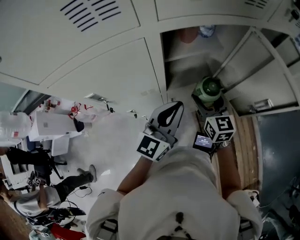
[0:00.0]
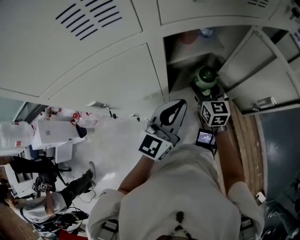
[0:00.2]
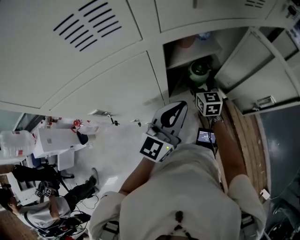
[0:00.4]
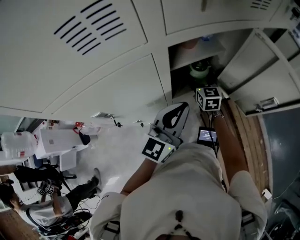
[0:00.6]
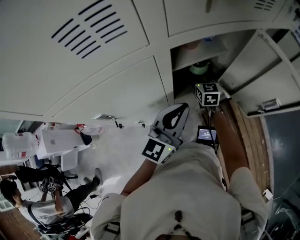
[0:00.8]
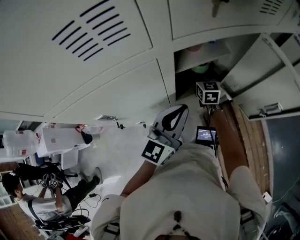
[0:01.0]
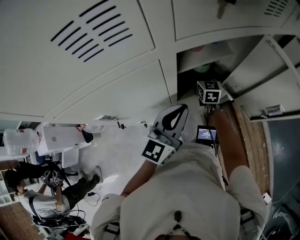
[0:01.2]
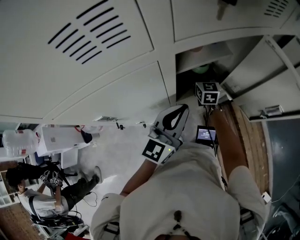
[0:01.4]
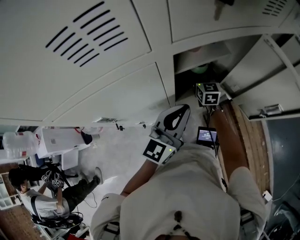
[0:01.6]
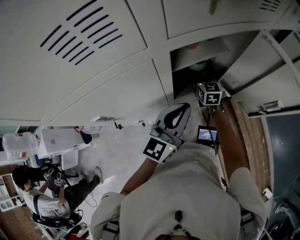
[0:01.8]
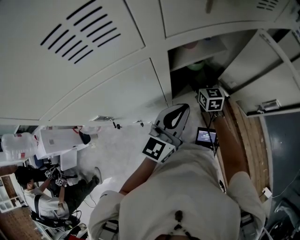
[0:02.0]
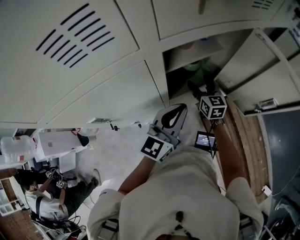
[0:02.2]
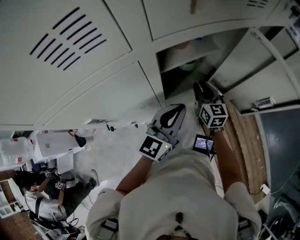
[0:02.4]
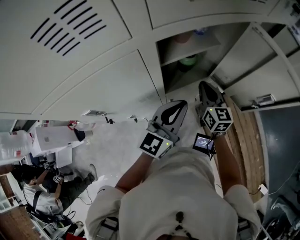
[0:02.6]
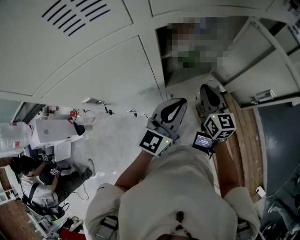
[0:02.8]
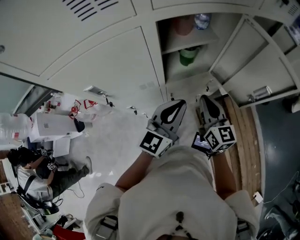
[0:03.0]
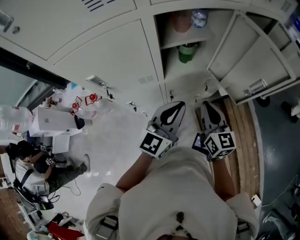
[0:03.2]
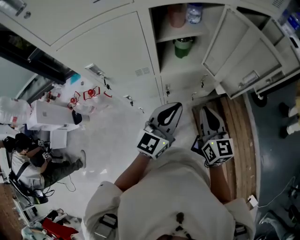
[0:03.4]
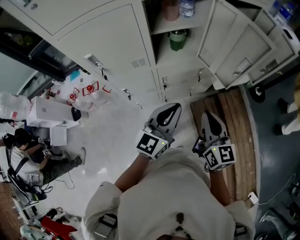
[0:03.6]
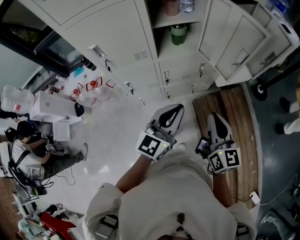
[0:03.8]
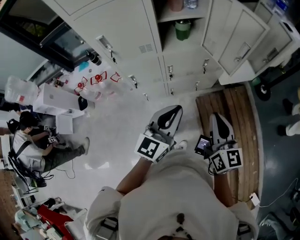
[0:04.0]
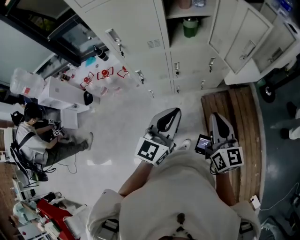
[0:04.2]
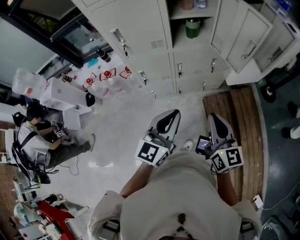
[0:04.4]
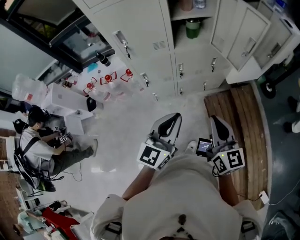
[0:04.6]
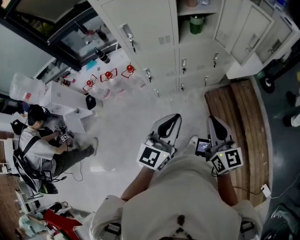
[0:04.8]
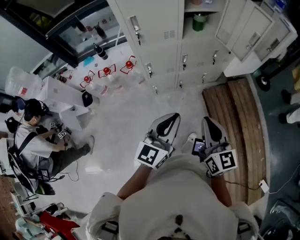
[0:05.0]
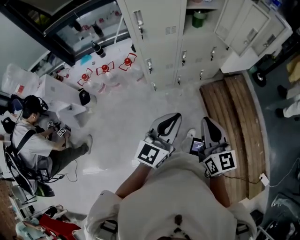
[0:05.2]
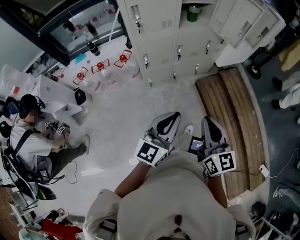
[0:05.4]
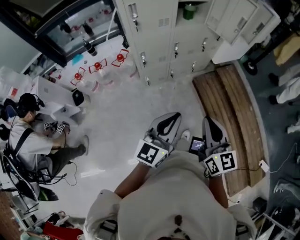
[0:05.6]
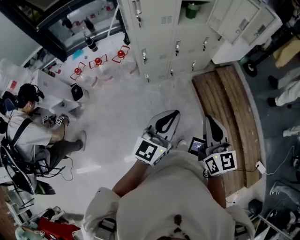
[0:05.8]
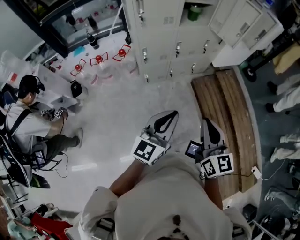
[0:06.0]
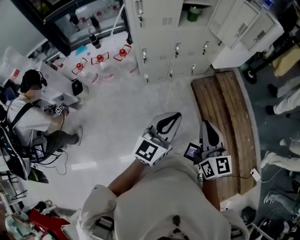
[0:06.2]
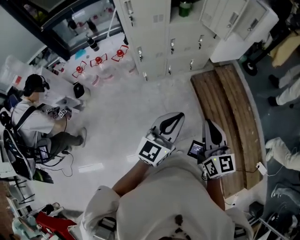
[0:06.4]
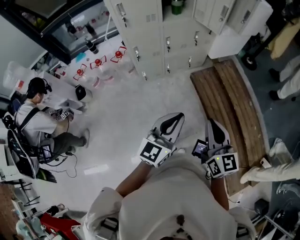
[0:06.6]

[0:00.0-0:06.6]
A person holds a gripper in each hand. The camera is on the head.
0:00.0 to 0:01.6: The right gripper is displaced forward and downward by approximately 20 cm.
0:01.6 to 0:03.2: The right gripper travels backward by about 30 cm, and closes. The left gripper heads backward and to the right, covering some 10 cm.
0:03.2 to 0:05.0: Both grippers move backward, some 35 cm.
0:05.0 to 0:06.6: The grippers both shift backward and to the right by approximately 20 cm.

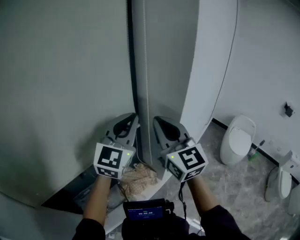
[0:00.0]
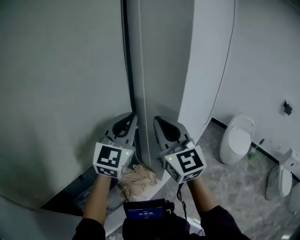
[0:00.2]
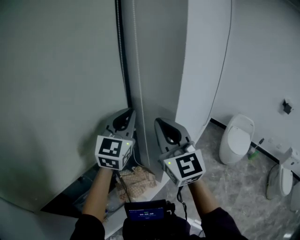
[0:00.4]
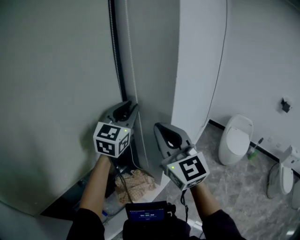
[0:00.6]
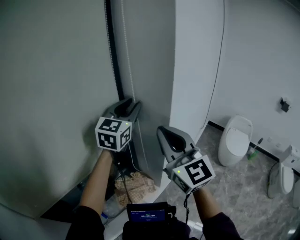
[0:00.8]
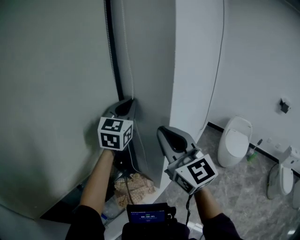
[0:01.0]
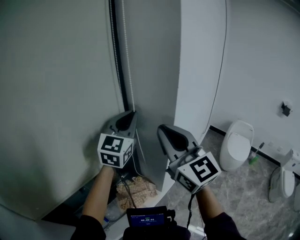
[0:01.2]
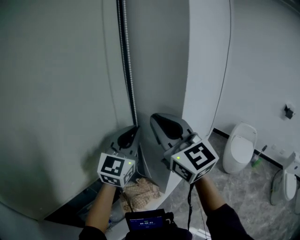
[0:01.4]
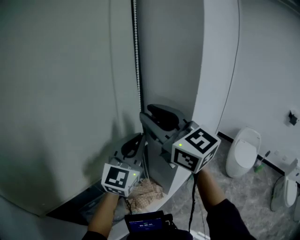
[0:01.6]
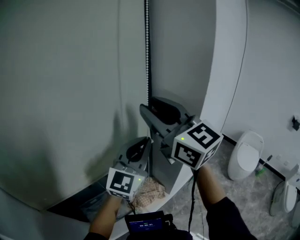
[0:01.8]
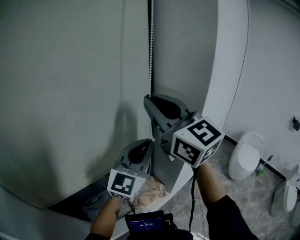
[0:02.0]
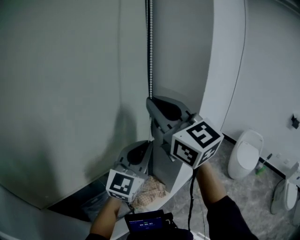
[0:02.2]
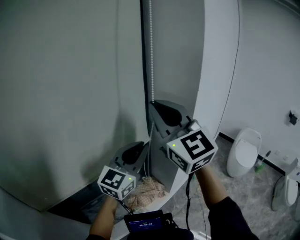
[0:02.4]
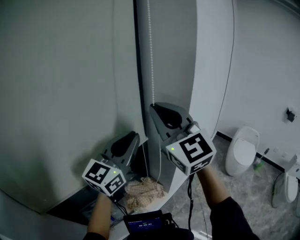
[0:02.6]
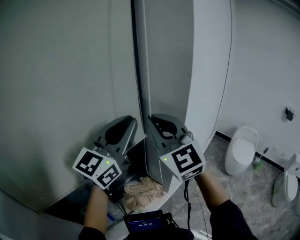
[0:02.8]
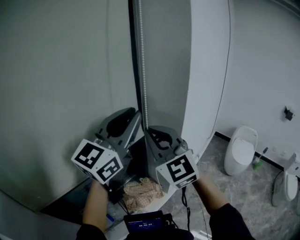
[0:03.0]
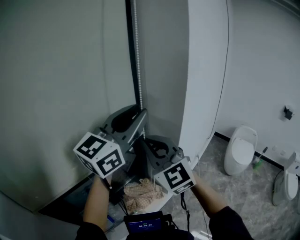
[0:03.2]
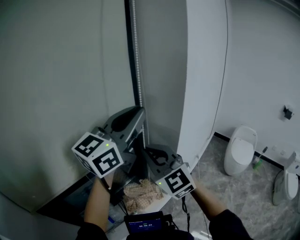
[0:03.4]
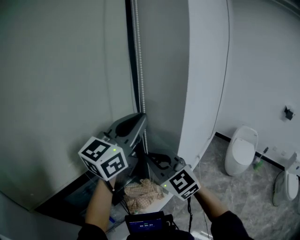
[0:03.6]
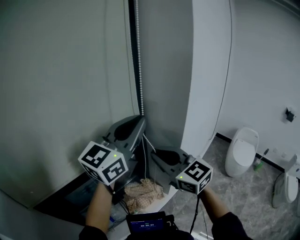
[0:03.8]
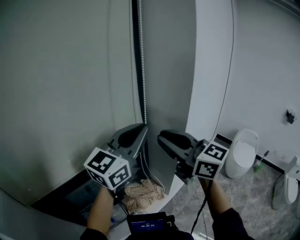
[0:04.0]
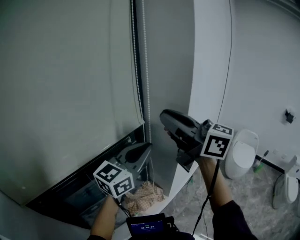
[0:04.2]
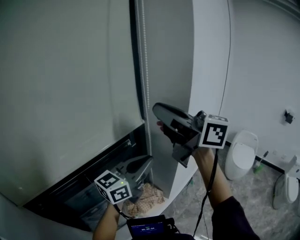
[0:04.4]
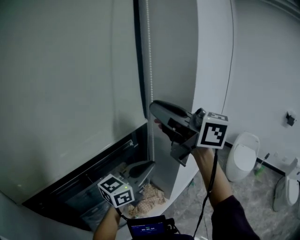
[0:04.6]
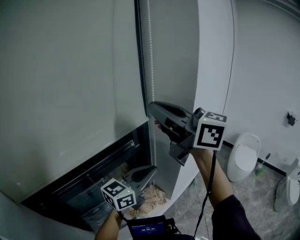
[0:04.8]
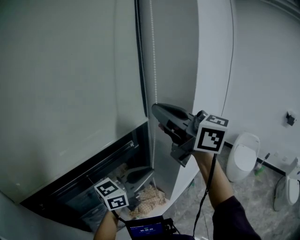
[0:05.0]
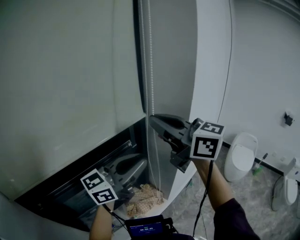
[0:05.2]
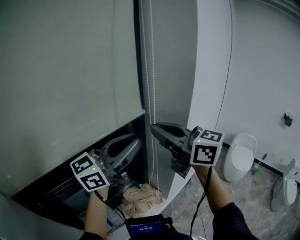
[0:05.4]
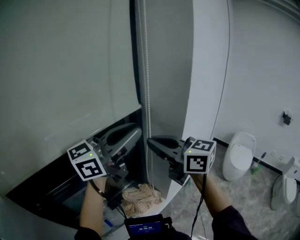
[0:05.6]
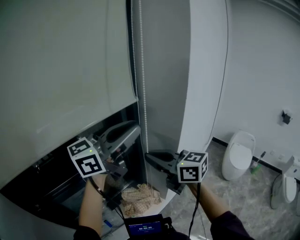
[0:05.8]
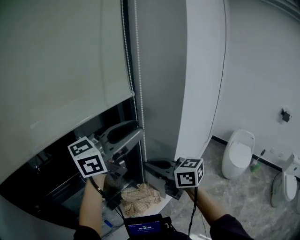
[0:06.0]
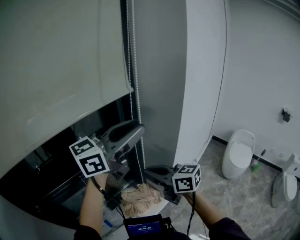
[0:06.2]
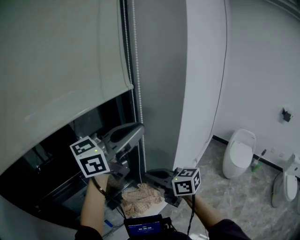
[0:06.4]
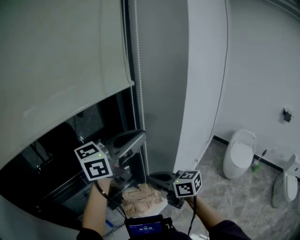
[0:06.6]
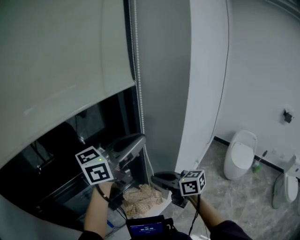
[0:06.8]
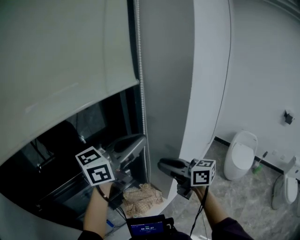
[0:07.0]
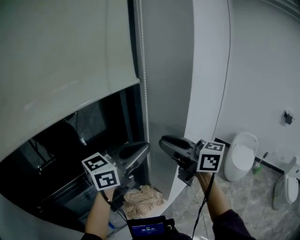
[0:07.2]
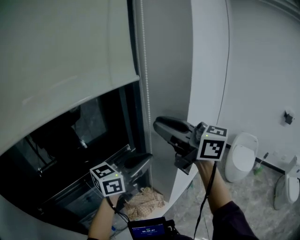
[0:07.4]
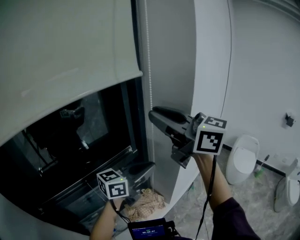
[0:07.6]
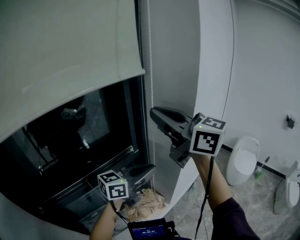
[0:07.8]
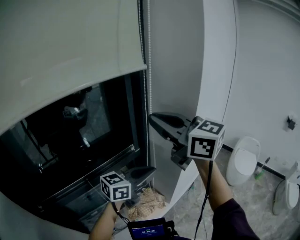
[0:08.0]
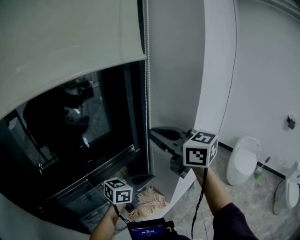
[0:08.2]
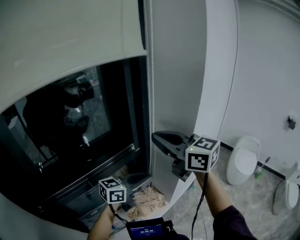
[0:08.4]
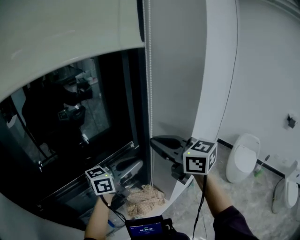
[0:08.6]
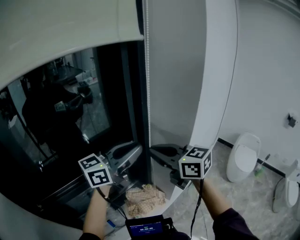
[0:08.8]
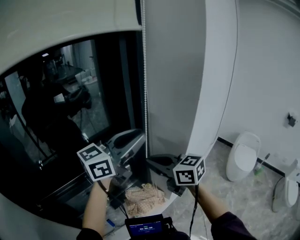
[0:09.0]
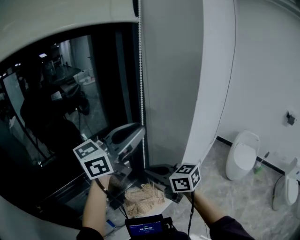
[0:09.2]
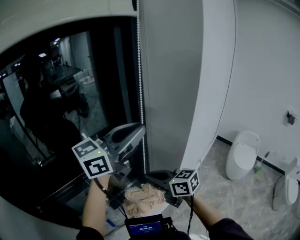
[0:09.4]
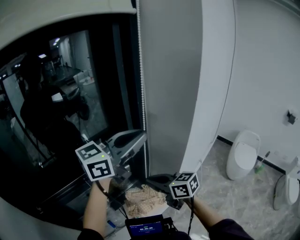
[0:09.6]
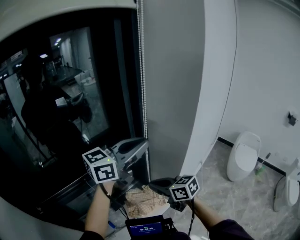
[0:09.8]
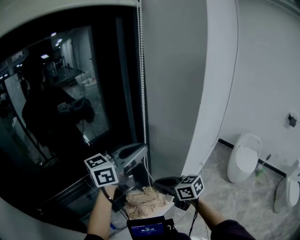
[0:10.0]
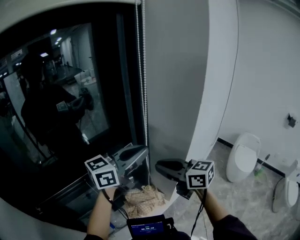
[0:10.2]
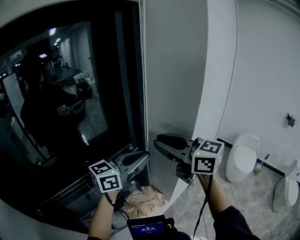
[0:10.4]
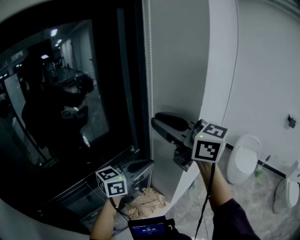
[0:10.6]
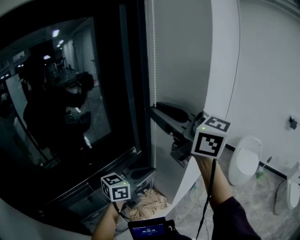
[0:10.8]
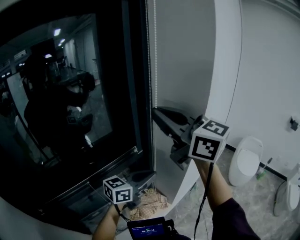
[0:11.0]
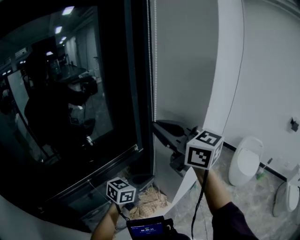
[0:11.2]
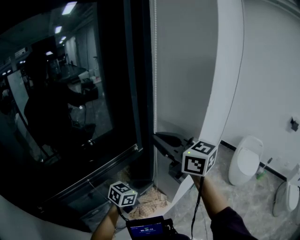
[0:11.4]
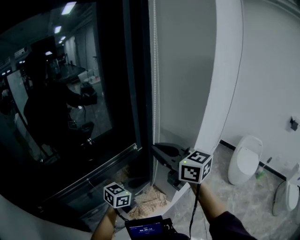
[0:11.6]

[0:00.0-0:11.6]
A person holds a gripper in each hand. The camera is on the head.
0:00.0 to 0:01.4: The left gripper moves about 10 cm forward and comes back, and opens, then closes once more. Meanwhile the right gripper heads upward, covering approximately 10 cm.
0:01.4 to 0:02.8: The left gripper shifts approximately 10 cm backward, upward and to the left; the right gripper shifts approximately 5 cm to the left, goes upward and returns, about 5 cm each way, and opens, then closes again.
0:02.8 to 0:04.4: The right gripper goes roughly 10 cm upward, and twists approximately 50 degrees clockwise, seen from behind, while the left gripper is displaced downward by approximately 10 cm, and rotates roughly 30 degrees.
0:04.4 to 0:05.8: The left gripper heads upward, covering approximately 15 cm. The right gripper is displaced downward by about 20 cm, and rotates about 20 degrees.
0:05.8 to 0:07.2: The left gripper travels downward by approximately 5 cm; the right gripper travels downward and back again, approximately 10 cm each way.
0:07.2 to 0:08.8: Both grippers move to the left, roughly 5 cm. The right gripper travels upward and back again, roughly 10 cm each way; the left gripper reaches about 20 cm downward, then returns.
0:08.8 to 0:10.2: The left gripper reaches some 10 cm upward, then returns. The right gripper is displaced downward by some 5 cm.
0:10.2 to 0:11.6: The left gripper is displaced downward by some 20 cm. The right gripper moves approximately 25 cm upward and comes back.

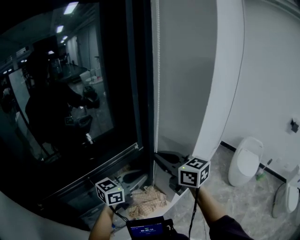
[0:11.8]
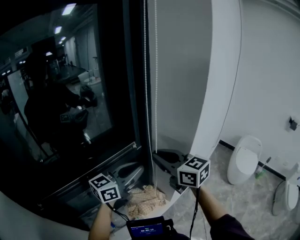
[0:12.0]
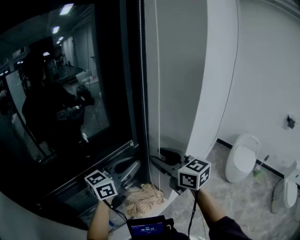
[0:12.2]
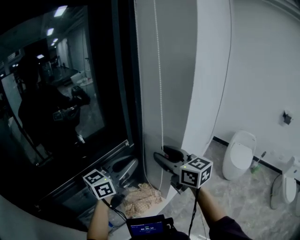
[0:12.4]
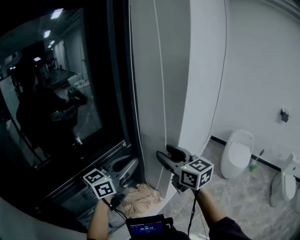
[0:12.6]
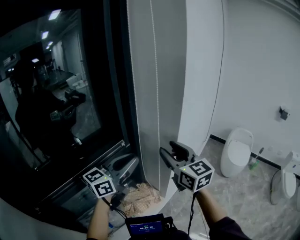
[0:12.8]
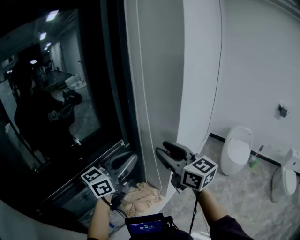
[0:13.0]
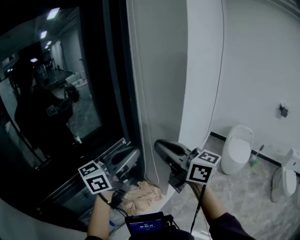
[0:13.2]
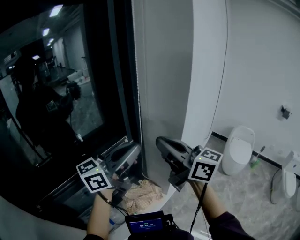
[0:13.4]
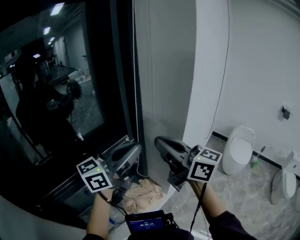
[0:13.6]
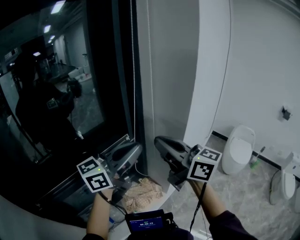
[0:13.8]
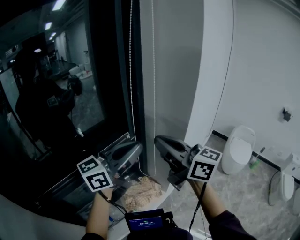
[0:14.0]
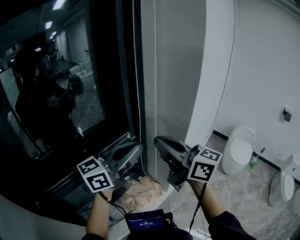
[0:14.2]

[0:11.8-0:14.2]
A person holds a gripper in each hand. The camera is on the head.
0:11.8 to 0:13.0: The right gripper moves to the right, about 10 cm, and opens, while the left gripper goes approximately 10 cm upward.
0:13.0 to 0:14.2: The right gripper moves to the left, some 5 cm, rotates approximately 20 degrees, and closes its fingers.

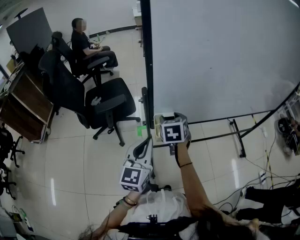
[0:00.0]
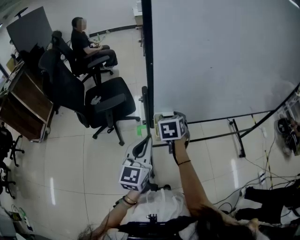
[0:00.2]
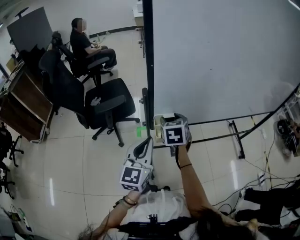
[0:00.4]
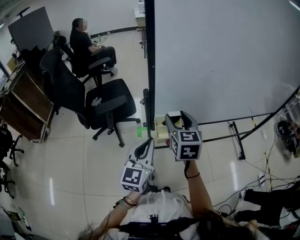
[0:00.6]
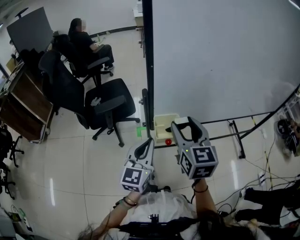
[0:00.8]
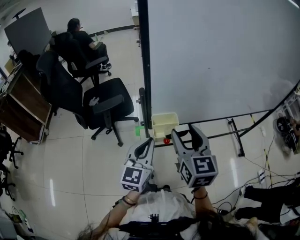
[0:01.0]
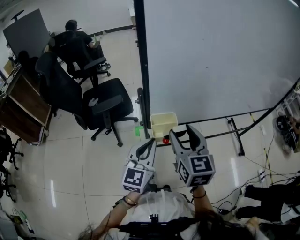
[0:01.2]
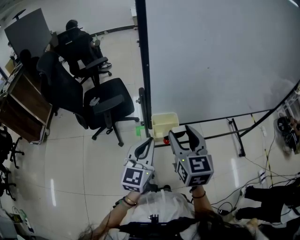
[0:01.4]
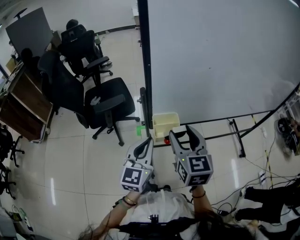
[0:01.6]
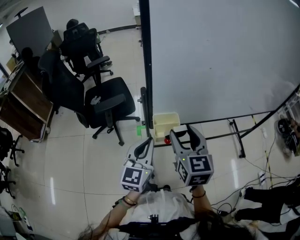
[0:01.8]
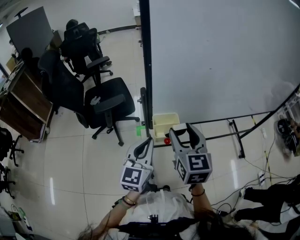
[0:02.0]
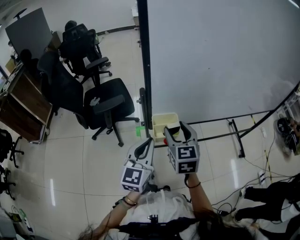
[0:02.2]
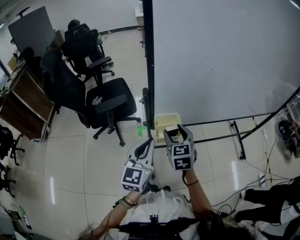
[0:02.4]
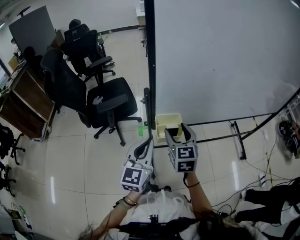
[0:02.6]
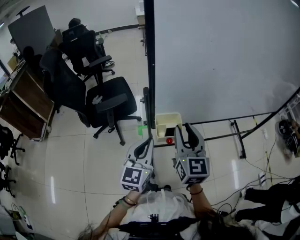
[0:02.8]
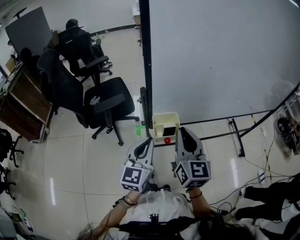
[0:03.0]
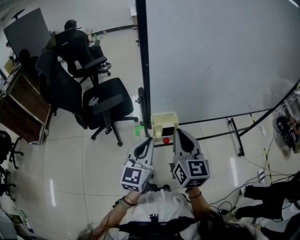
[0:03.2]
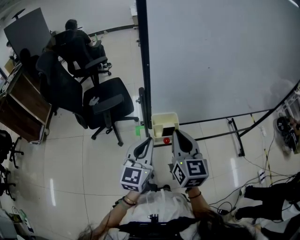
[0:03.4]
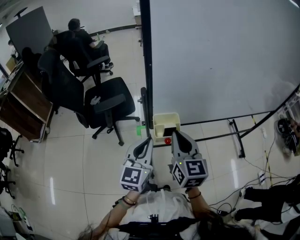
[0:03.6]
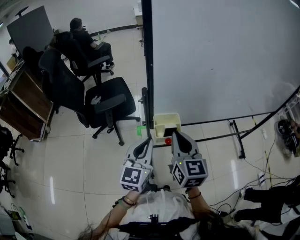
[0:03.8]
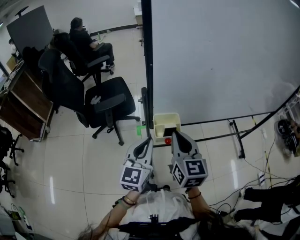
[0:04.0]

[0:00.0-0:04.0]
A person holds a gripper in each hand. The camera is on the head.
0:00.0 to 0:01.4: The right gripper heads backward and upward, covering roughly 15 cm, and changes its angle by about 30 degrees.
0:01.4 to 0:02.6: The right gripper travels downward by approximately 5 cm.
0:02.6 to 0:04.0: The right gripper travels upward by some 5 cm, and closes up.
